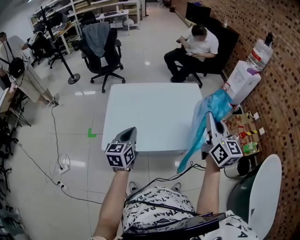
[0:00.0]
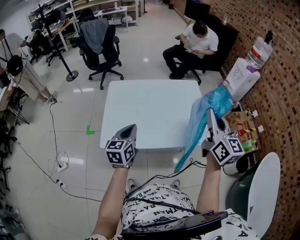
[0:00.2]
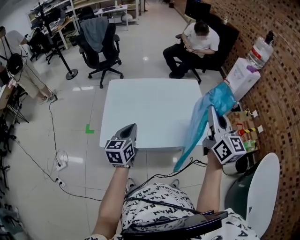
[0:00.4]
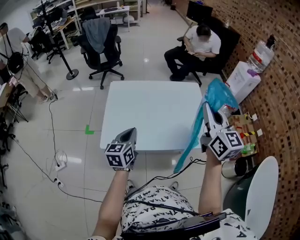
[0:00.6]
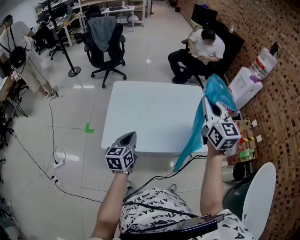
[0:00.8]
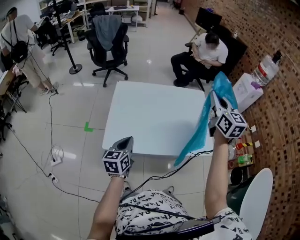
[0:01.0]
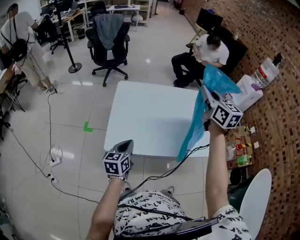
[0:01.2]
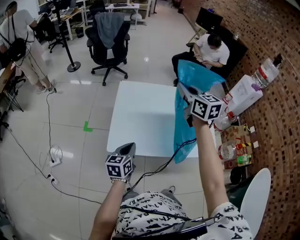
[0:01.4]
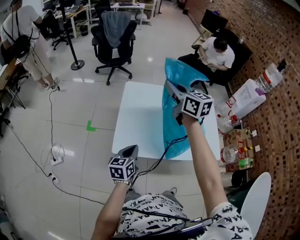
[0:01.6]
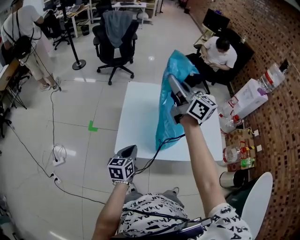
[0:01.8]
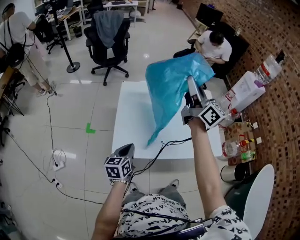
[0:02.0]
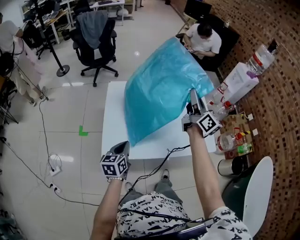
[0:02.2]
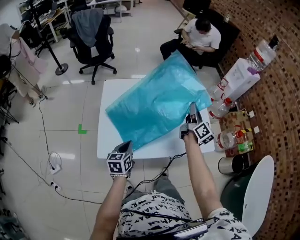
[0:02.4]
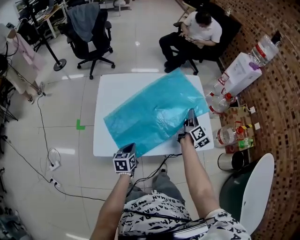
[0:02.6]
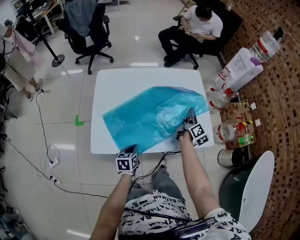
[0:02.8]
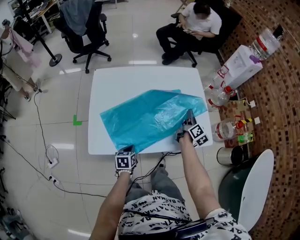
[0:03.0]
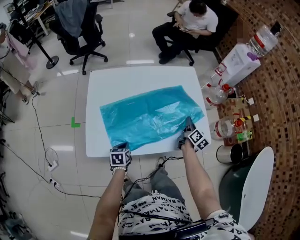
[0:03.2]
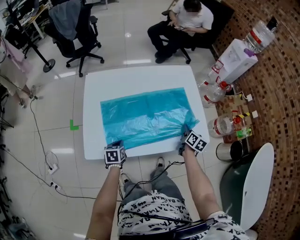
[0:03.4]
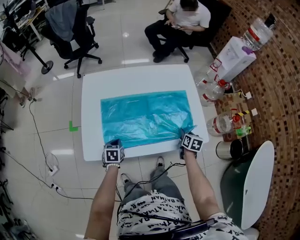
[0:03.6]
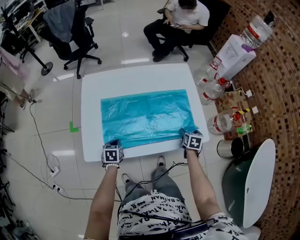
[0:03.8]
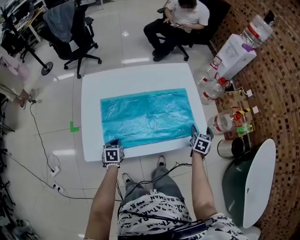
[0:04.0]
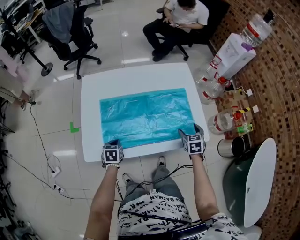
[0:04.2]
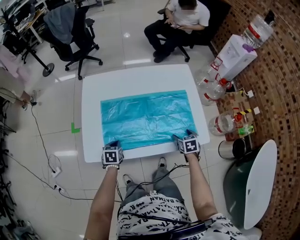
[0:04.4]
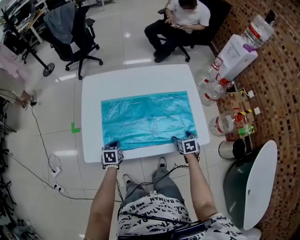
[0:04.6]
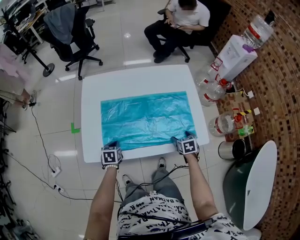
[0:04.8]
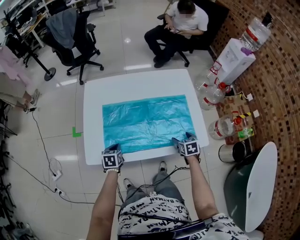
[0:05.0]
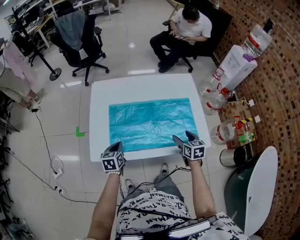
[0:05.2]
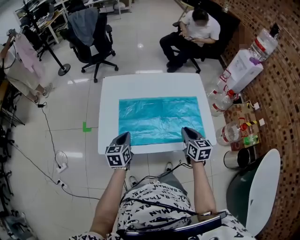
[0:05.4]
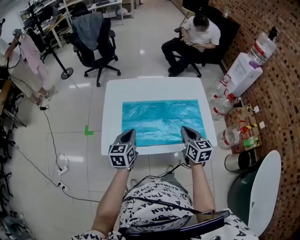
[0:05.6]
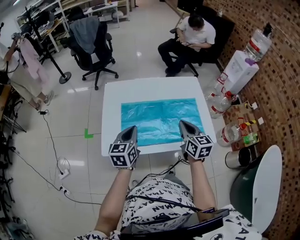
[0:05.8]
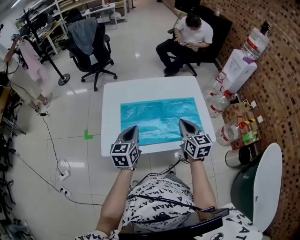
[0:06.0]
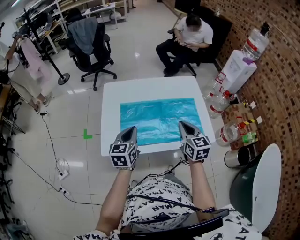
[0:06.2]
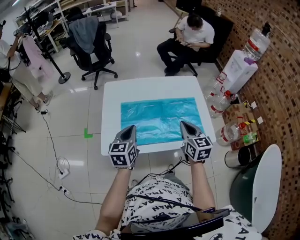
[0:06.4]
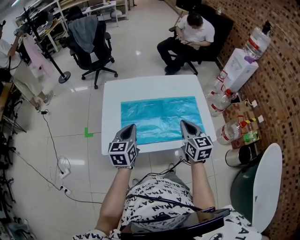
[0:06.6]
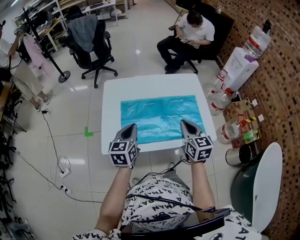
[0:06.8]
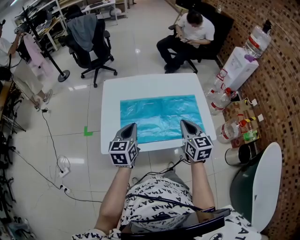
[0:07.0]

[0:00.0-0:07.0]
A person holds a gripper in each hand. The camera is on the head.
0:00.0 to 0:01.4: The left gripper travels downward and to the left by approximately 15 cm; the right gripper heads to the left and forward, covering roughly 30 cm, and changes its angle by about 30 degrees.
0:01.4 to 0:02.8: The right gripper shifts roughly 30 cm downward, and rotates some 60 degrees. The left gripper moves downward, approximately 20 cm, and turns by about 20 degrees.
0:02.8 to 0:04.2: The left gripper goes some 5 cm to the left; the right gripper travels downward, backward and to the right by roughly 15 cm, rolls counterclockwise, seen from behind, by some 60 degrees, and opens.
0:04.2 to 0:05.6: The left gripper is displaced upward by approximately 20 cm, and tips its fingers upward by roughly 30 degrees; the right gripper shifts about 20 cm upward and to the left, swivels roughly 30 degrees, and closes up.
0:05.6 to 0:07.0: There are only small adjustments of the grippers.

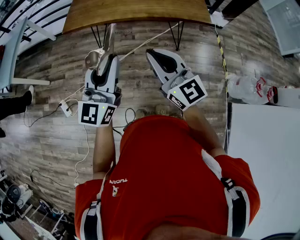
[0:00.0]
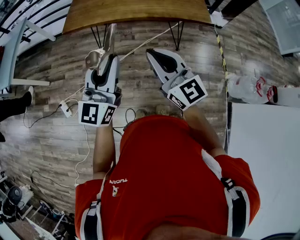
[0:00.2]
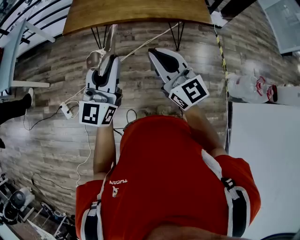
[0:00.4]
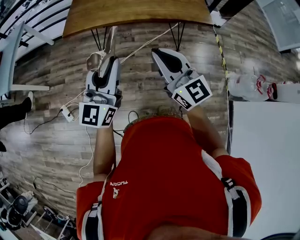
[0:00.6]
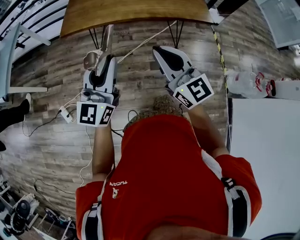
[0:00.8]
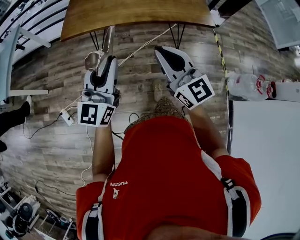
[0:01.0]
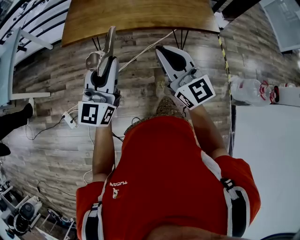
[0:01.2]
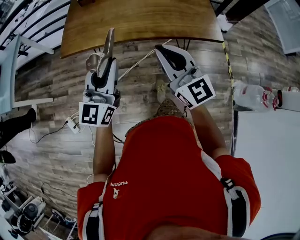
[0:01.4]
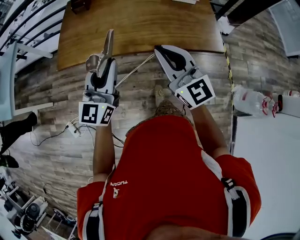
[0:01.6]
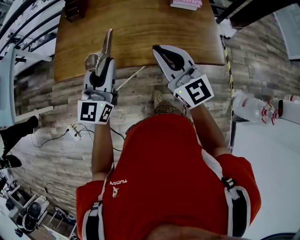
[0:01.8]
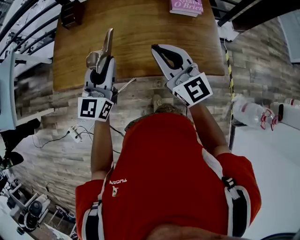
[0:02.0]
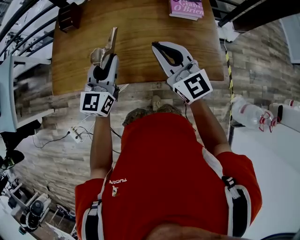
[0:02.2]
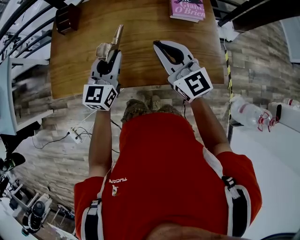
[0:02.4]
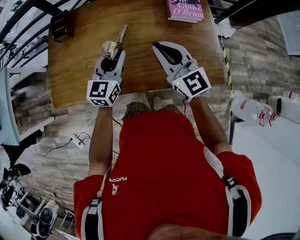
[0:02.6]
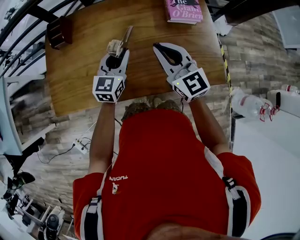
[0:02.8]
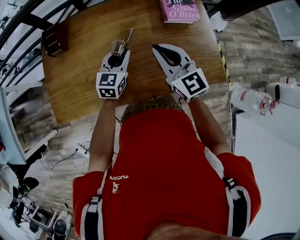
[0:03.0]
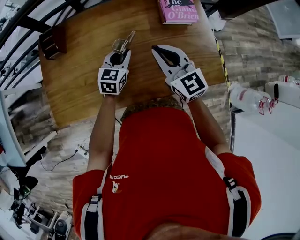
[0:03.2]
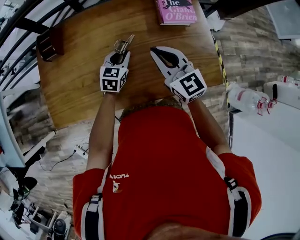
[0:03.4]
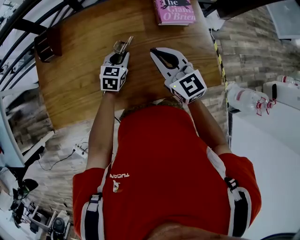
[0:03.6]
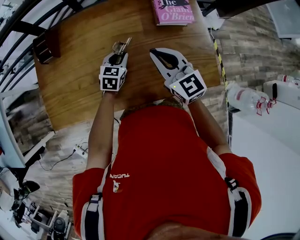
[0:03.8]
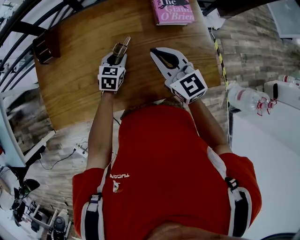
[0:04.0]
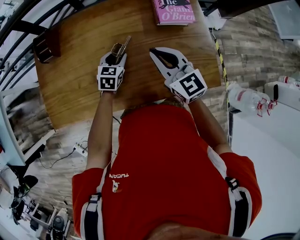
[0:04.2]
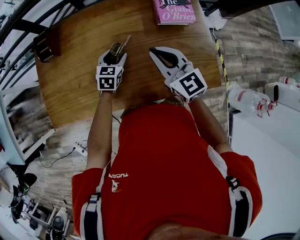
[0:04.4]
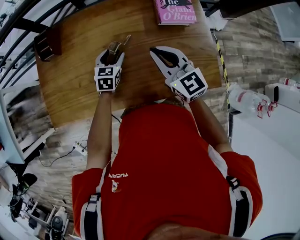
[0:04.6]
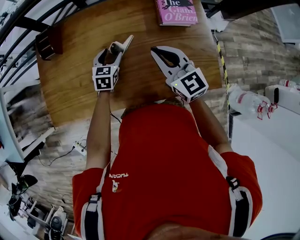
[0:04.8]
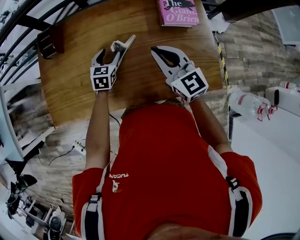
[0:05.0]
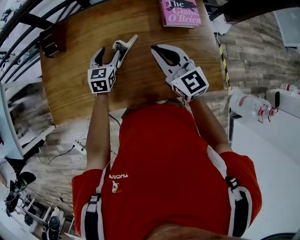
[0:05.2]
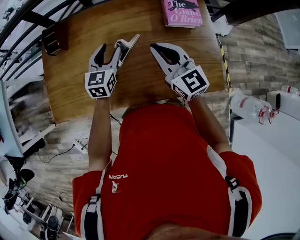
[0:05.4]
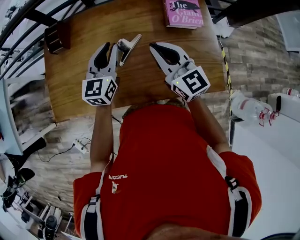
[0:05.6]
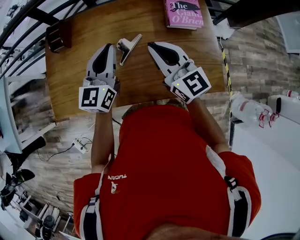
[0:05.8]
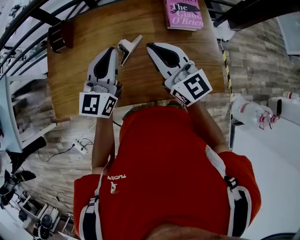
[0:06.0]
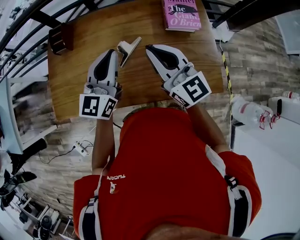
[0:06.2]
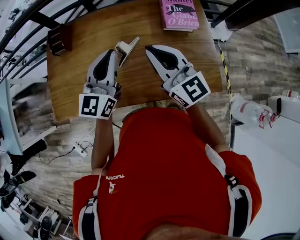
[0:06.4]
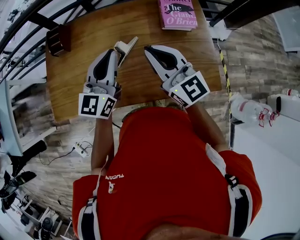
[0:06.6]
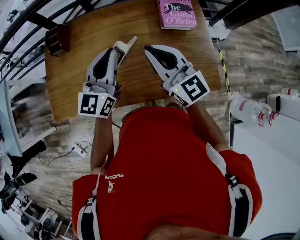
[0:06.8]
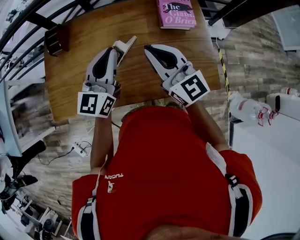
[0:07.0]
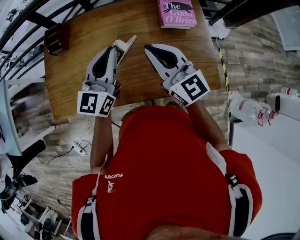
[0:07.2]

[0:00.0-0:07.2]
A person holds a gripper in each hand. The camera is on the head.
0:00.0 to 0:01.4: Both grippers travel together forward, approximately 20 cm.
0:01.4 to 0:02.8: Both grippers travel together forward, approximately 35 cm. The left gripper rotates about 20 degrees.
0:02.8 to 0:04.4: The left gripper moves downward and forward, approximately 15 cm, rotates some 20 degrees, and opens. The right gripper moves some 5 cm.
0:04.4 to 0:05.8: The left gripper goes approximately 20 cm upward, tilts its fingers approximately 40 degrees upward, and closes up; the right gripper is displaced upward by about 5 cm.
0:05.8 to 0:07.2: There are only small adjustments of the grippers.

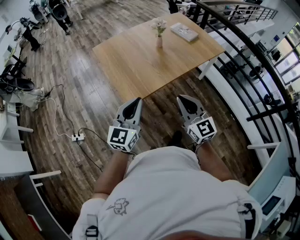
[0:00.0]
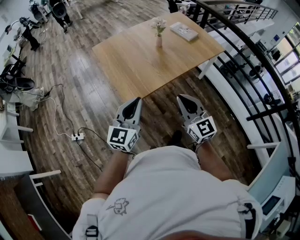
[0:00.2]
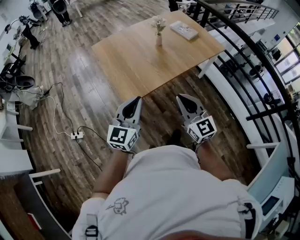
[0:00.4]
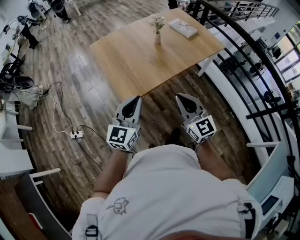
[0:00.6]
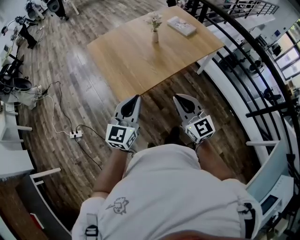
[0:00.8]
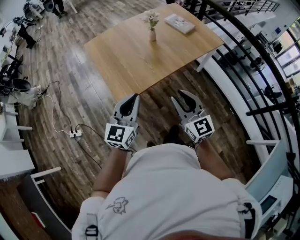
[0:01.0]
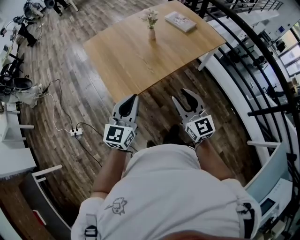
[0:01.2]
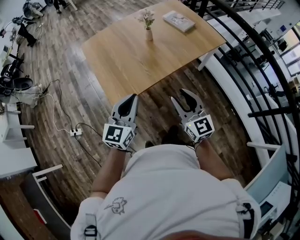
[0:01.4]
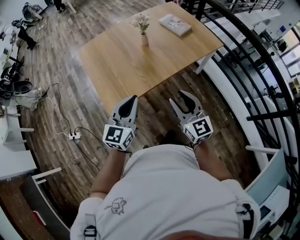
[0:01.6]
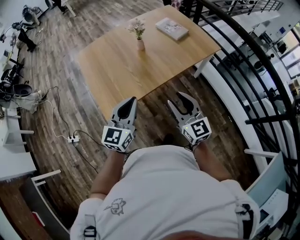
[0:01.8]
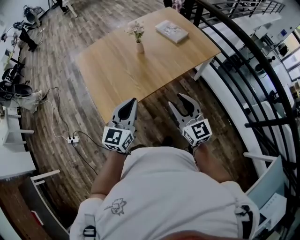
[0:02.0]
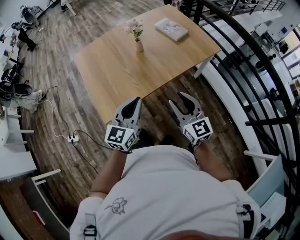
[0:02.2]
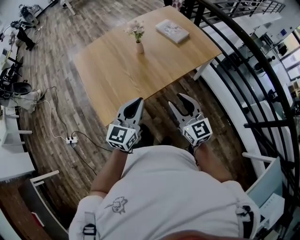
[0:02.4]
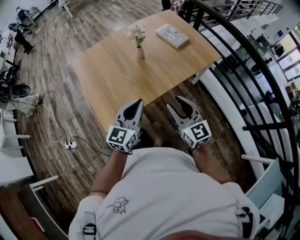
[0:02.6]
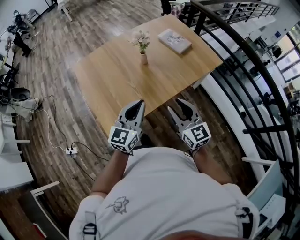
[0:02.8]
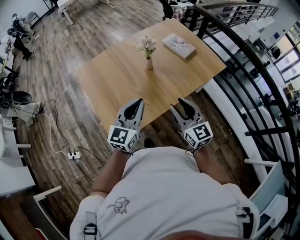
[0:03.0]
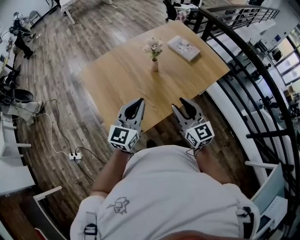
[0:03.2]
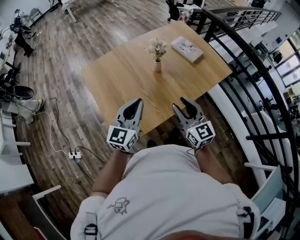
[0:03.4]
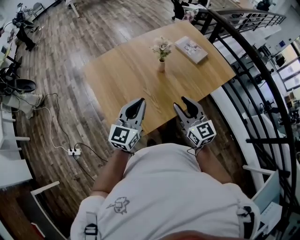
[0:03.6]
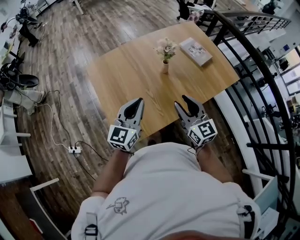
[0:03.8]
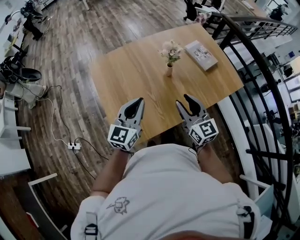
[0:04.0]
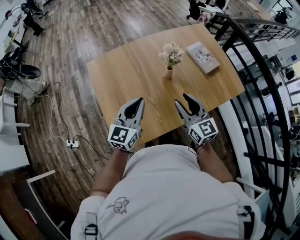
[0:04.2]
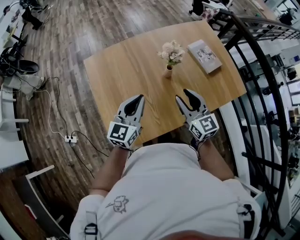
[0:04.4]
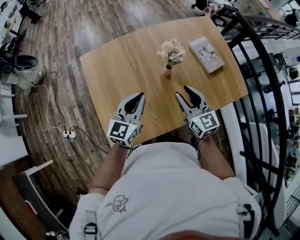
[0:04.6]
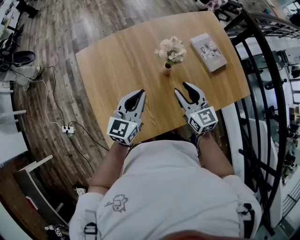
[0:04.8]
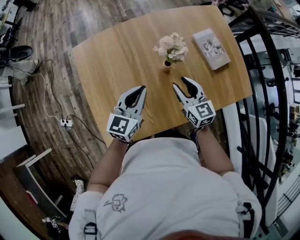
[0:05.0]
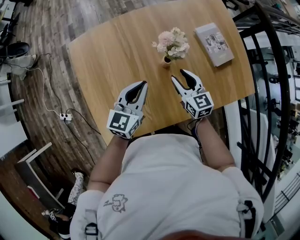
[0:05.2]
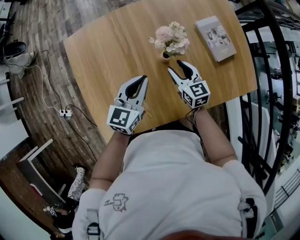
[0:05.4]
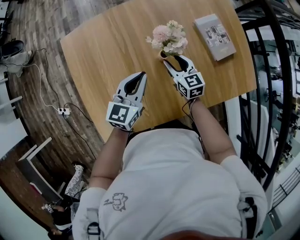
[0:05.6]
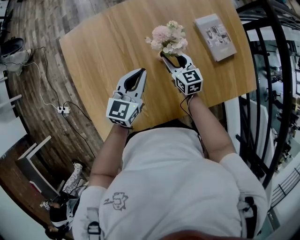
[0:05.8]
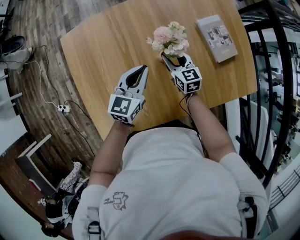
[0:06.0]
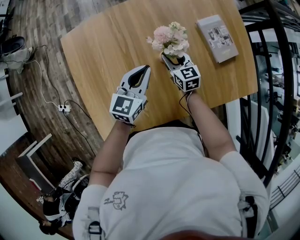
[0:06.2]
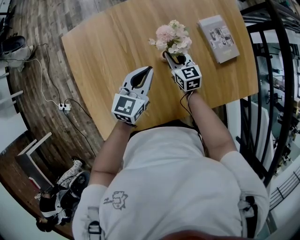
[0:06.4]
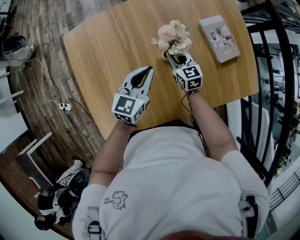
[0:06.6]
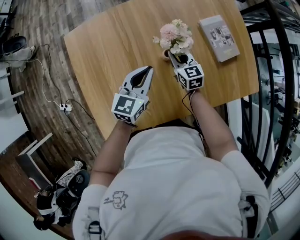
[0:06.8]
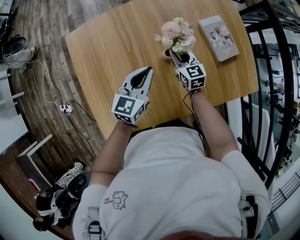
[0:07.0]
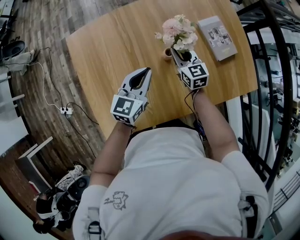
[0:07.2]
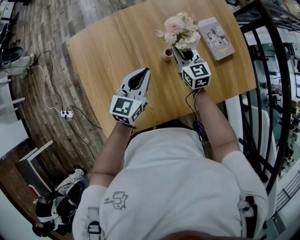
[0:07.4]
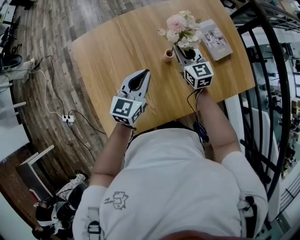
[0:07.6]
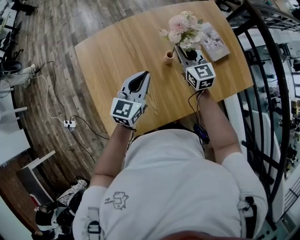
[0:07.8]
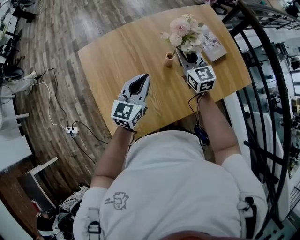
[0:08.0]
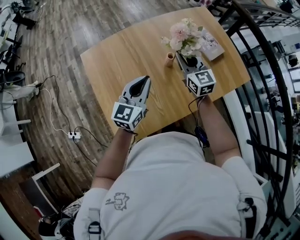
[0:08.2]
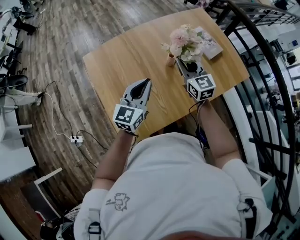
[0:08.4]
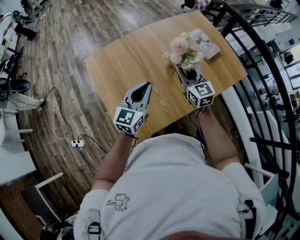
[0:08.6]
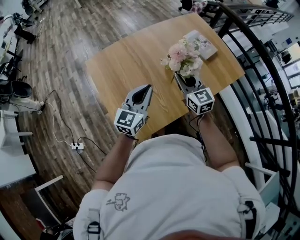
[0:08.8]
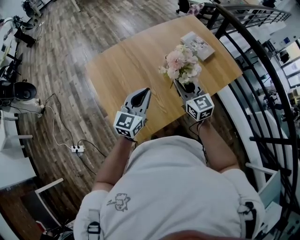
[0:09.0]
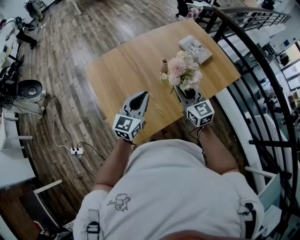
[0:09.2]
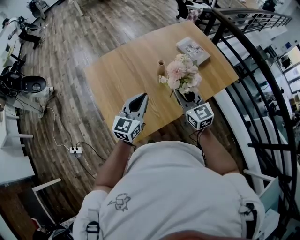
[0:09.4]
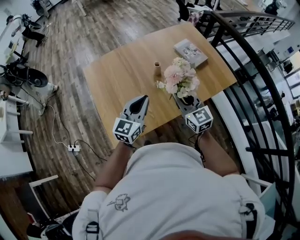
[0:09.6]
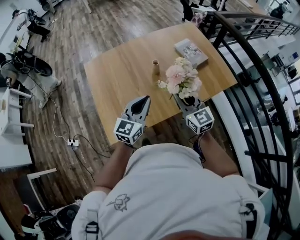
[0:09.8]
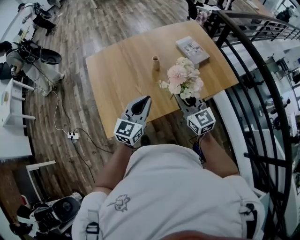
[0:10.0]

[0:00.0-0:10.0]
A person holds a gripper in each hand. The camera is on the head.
0:00.0 to 0:01.4: Both grippers travel together to the right and forward, approximately 15 cm. The right gripper opens.
0:01.4 to 0:02.8: The two grippers go about 15 cm forward.
0:02.8 to 0:04.2: The grippers both shift forward and to the left by about 20 cm.
0:04.2 to 0:05.8: The left gripper is displaced forward, downward and to the right by some 25 cm; the right gripper travels forward and downward by some 35 cm, and swivels approximately 20 degrees.
0:05.8 to 0:07.2: The right gripper closes its fingers.
0:07.2 to 0:08.6: The left gripper goes about 20 cm backward, upward and to the left. The right gripper goes approximately 25 cm backward and upward.
0:08.6 to 0:10.0: The left gripper shifts approximately 20 cm to the right and backward. The right gripper is displaced backward and to the right by roughly 20 cm.
